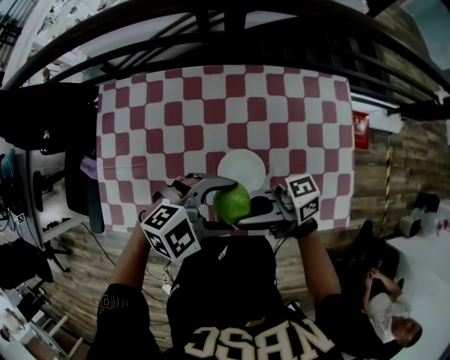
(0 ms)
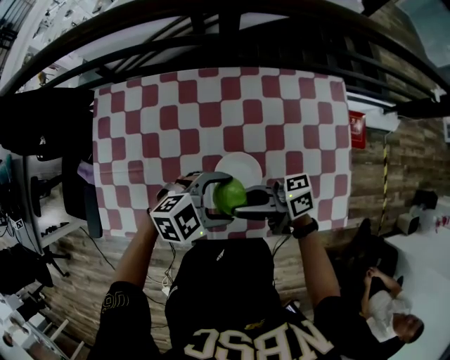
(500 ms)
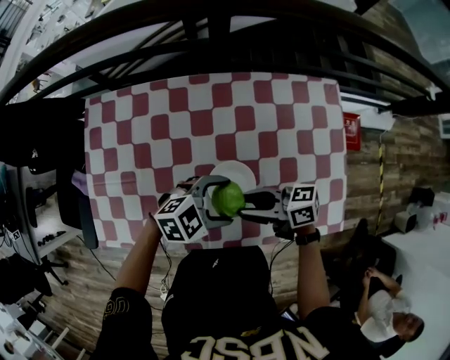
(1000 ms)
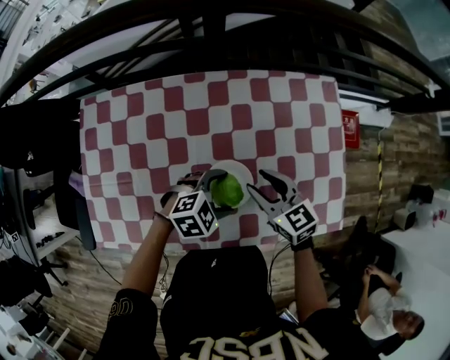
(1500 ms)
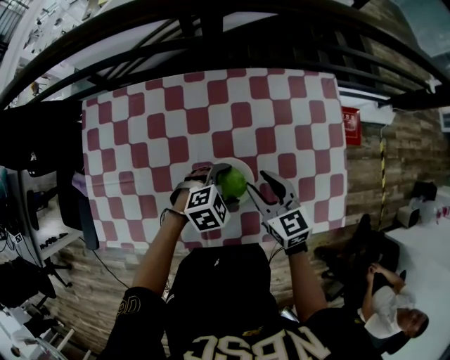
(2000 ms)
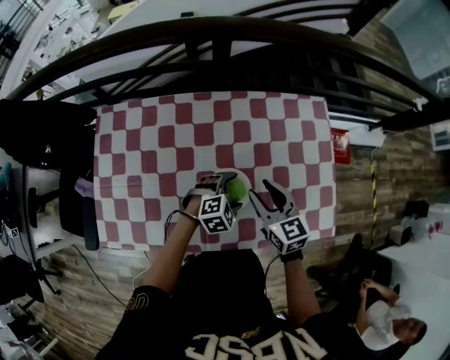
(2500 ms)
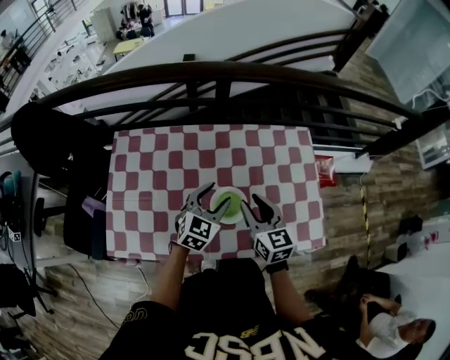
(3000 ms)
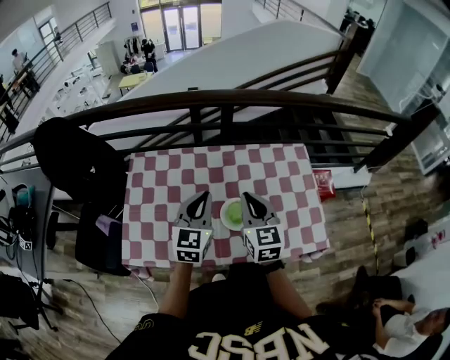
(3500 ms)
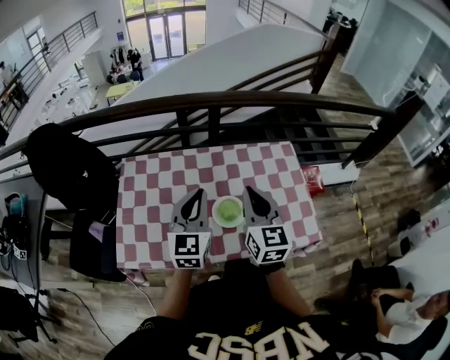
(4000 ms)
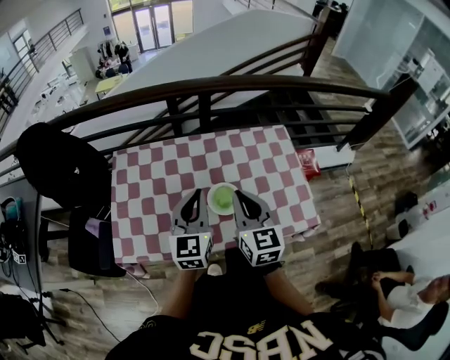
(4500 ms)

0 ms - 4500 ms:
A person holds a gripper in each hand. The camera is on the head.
0 ms - 2000 ms: The right gripper ends up approximately 20 cm from where it was, angles its fingers downward, by approximately 50 degrees, and opens; the left gripper goes approximately 15 cm downward, and turns by approximately 20 degrees.
2000 ms - 4500 ms: The right gripper travels upward and backward by roughly 25 cm, turns by some 30 degrees, and closes its fingers; the left gripper goes about 30 cm upward, angles its fingers upward, by about 50 degrees, and closes.

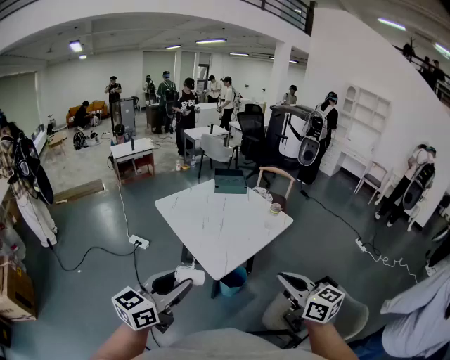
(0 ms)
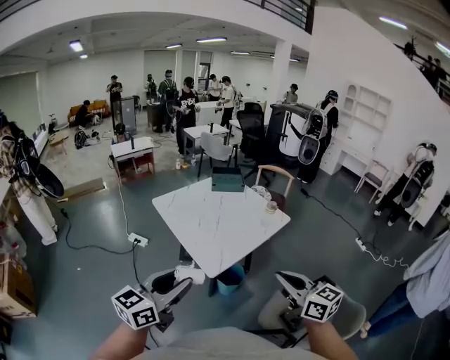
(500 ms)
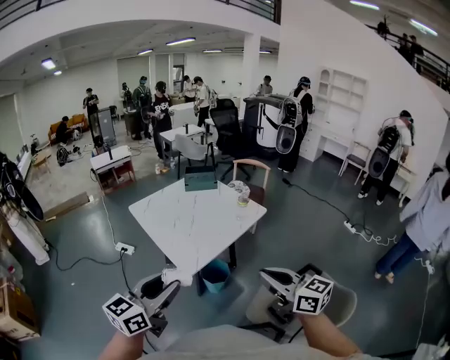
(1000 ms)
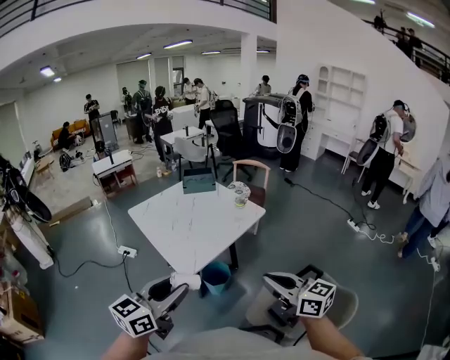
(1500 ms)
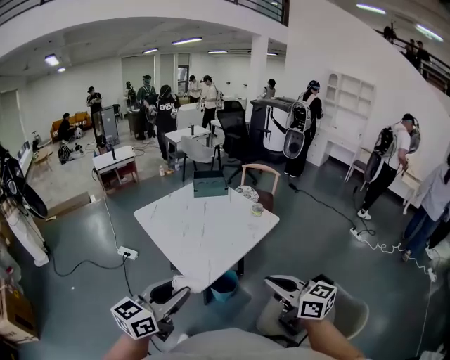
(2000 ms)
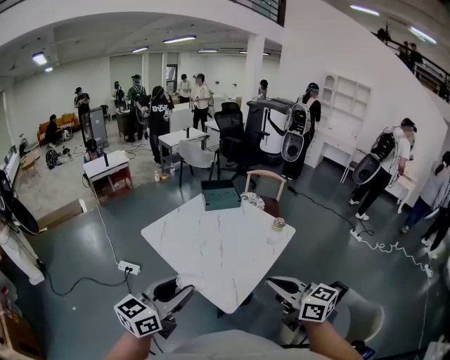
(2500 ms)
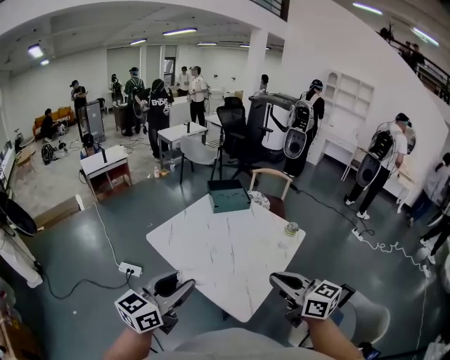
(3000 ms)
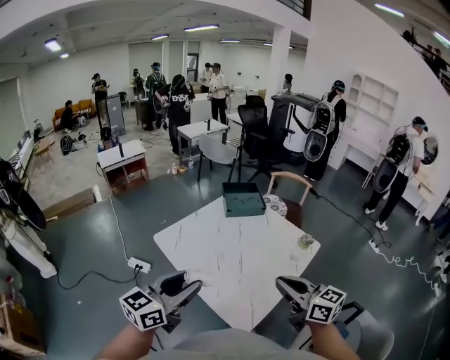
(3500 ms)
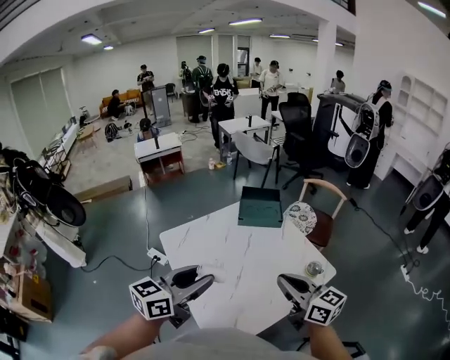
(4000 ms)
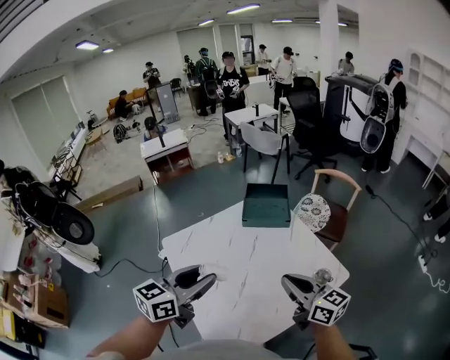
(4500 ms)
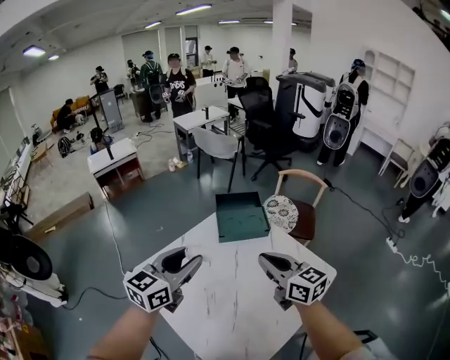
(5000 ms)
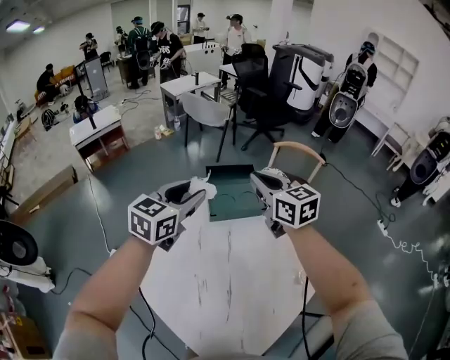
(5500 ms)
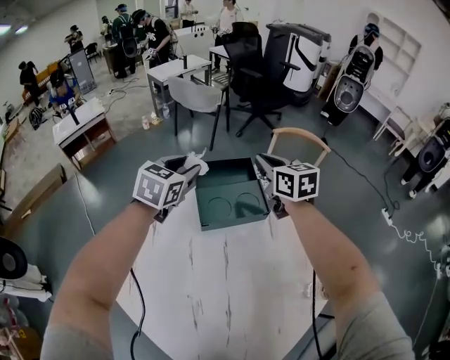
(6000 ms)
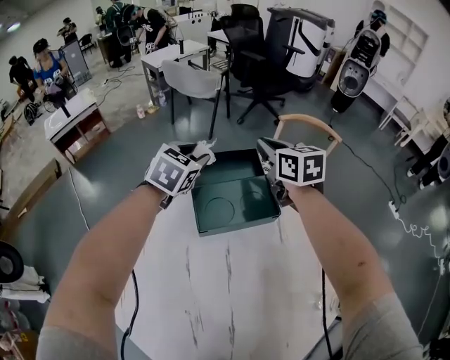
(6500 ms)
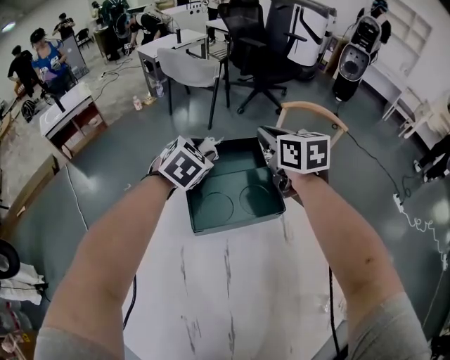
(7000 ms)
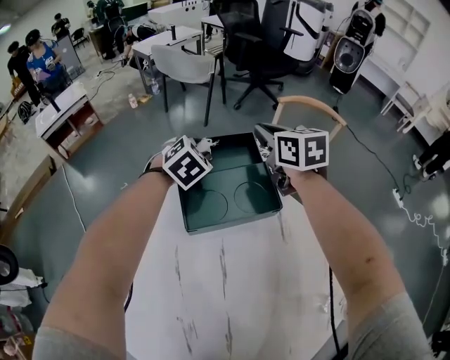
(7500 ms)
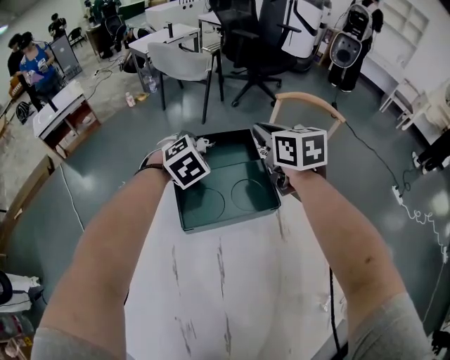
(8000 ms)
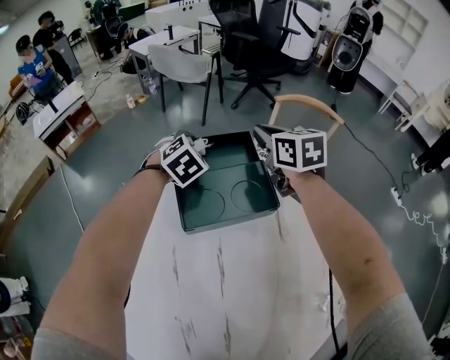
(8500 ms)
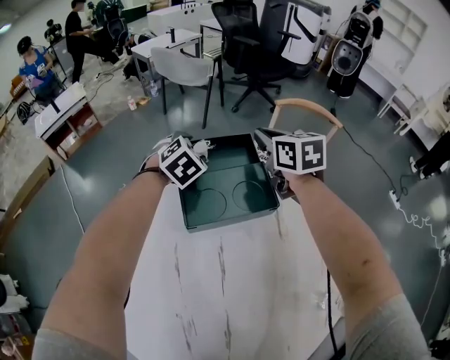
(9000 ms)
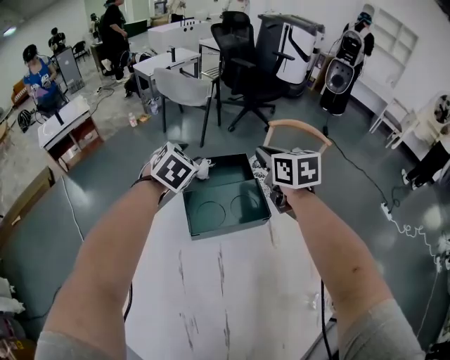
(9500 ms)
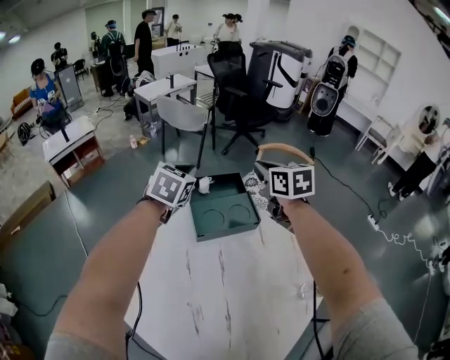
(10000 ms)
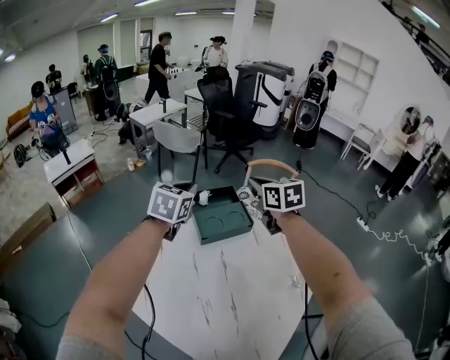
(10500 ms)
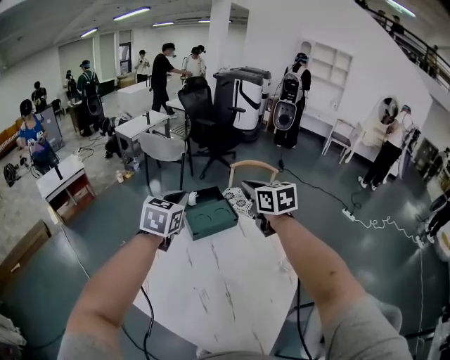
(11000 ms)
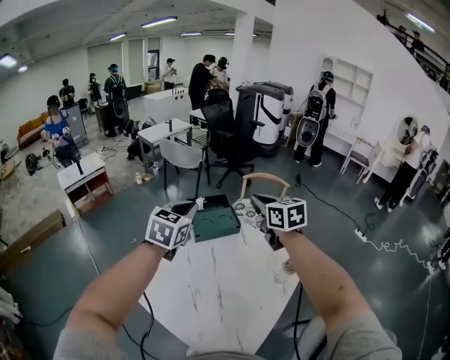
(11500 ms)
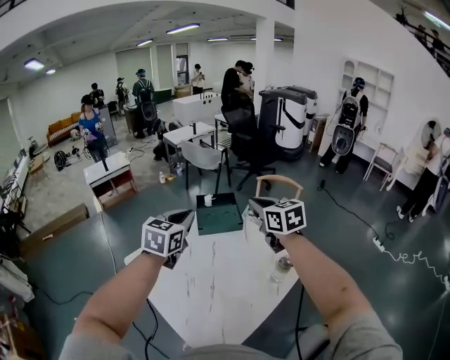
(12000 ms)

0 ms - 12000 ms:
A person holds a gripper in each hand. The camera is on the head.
0 ms - 2000 ms: The left gripper travels to the right and forward by approximately 10 cm.
2000 ms - 4000 ms: Both grippers travel together forward, about 35 cm.
4000 ms - 6000 ms: Both grippers are carried forward, roughly 50 cm. The right gripper turns by roughly 30 degrees. The left gripper swivels approximately 30 degrees.
6000 ms - 8000 ms: The right gripper is displaced downward and forward by roughly 15 cm; the left gripper moves downward and forward, approximately 20 cm, and rotates approximately 40 degrees.
8000 ms - 10000 ms: The left gripper is displaced upward by some 20 cm, rotates approximately 40 degrees, and closes up. The right gripper heads upward and backward, covering about 20 cm.
10000 ms - 12000 ms: Both grippers move backward and upward, about 35 cm.

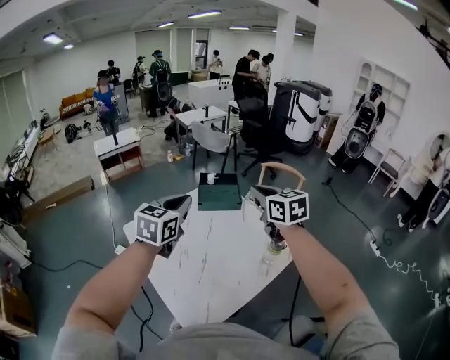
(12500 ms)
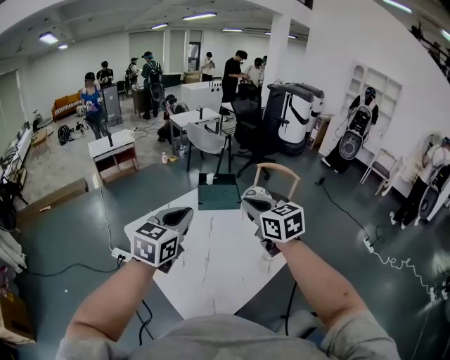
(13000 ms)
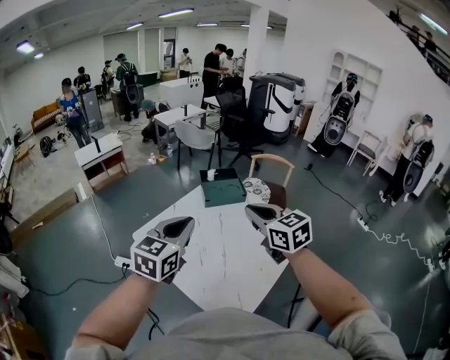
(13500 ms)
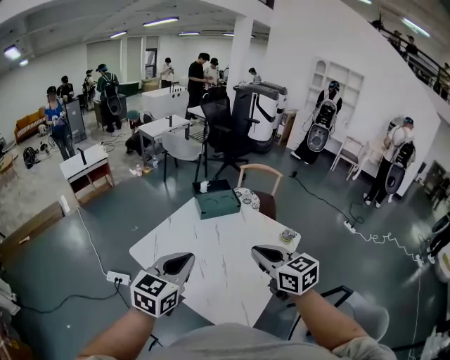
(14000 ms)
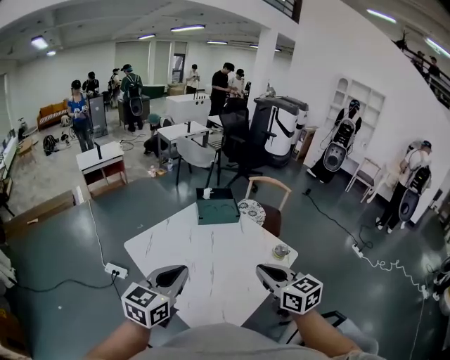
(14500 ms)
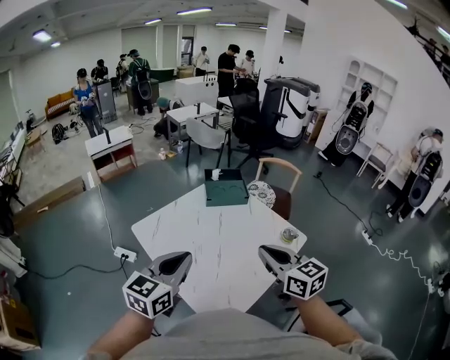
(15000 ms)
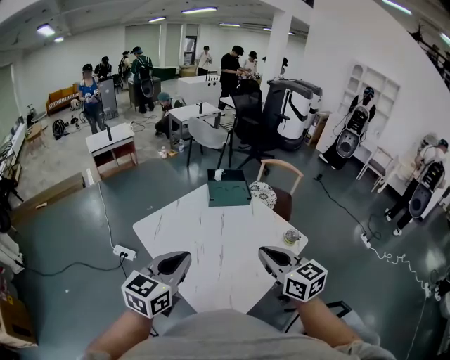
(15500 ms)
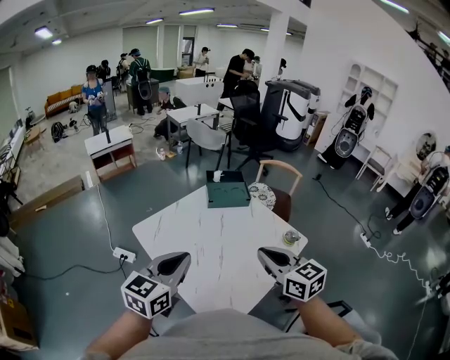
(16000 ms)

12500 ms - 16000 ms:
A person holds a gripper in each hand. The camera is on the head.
12500 ms - 14500 ms: The left gripper shifts roughly 20 cm backward and to the left, while the right gripper moves backward, roughly 20 cm.
14500 ms - 16000 ms: There are only small adjustments of the grippers.

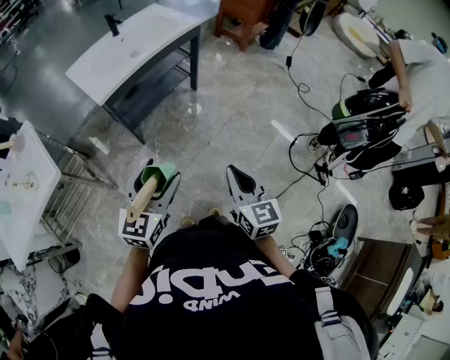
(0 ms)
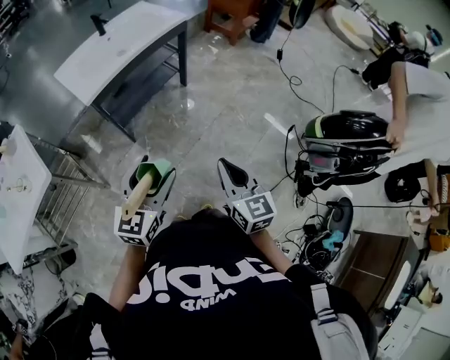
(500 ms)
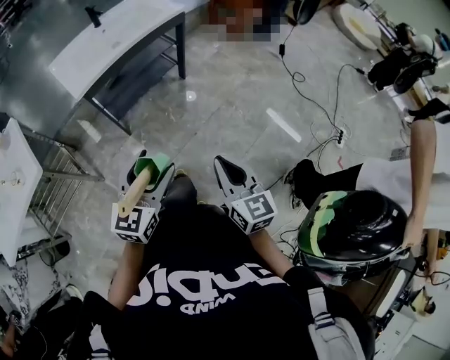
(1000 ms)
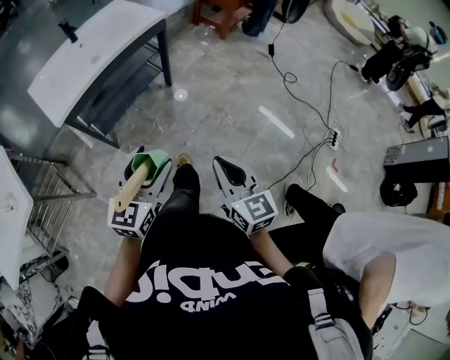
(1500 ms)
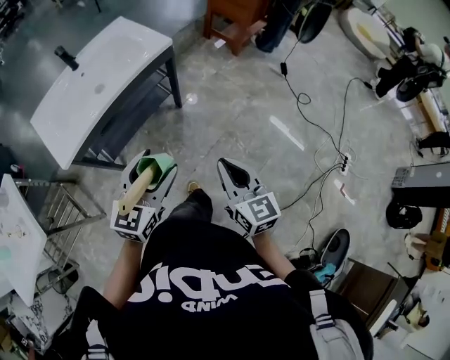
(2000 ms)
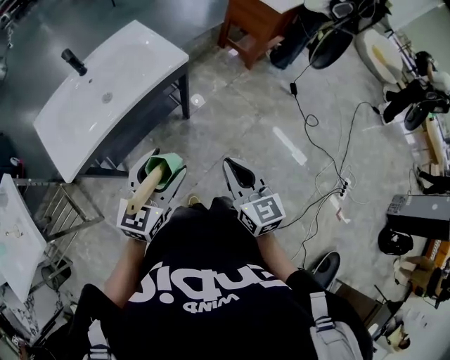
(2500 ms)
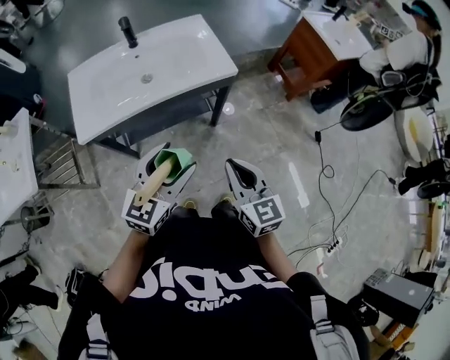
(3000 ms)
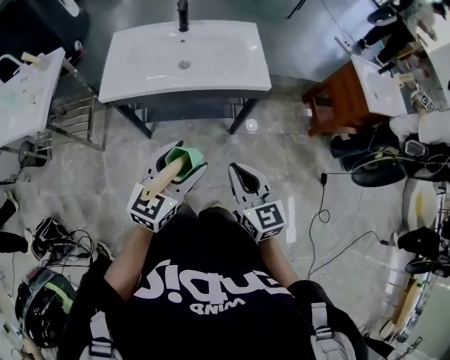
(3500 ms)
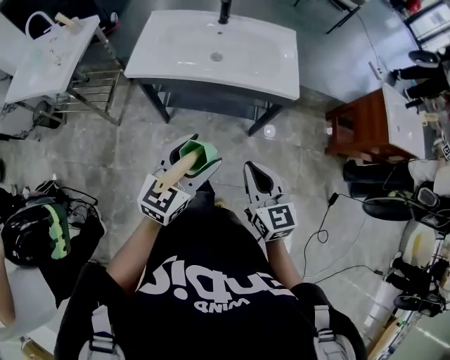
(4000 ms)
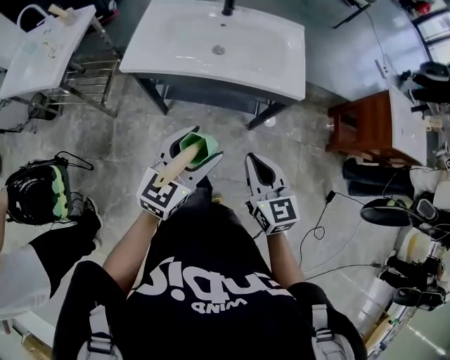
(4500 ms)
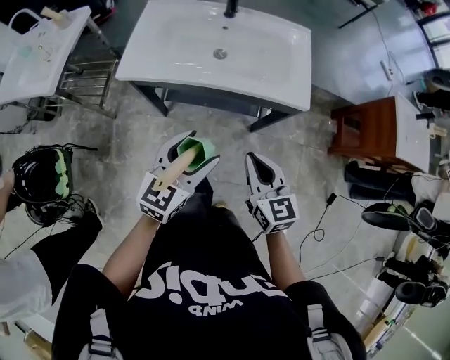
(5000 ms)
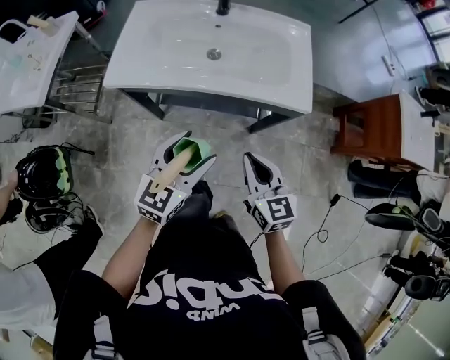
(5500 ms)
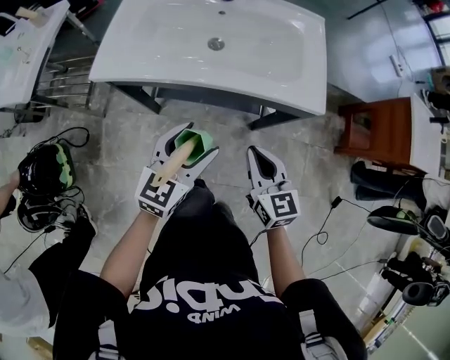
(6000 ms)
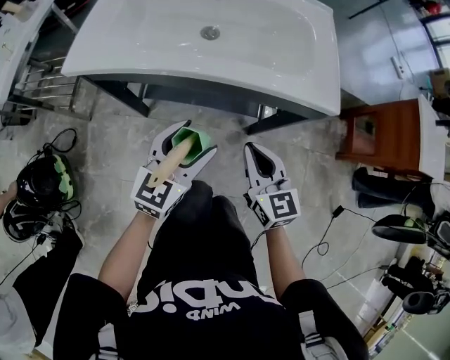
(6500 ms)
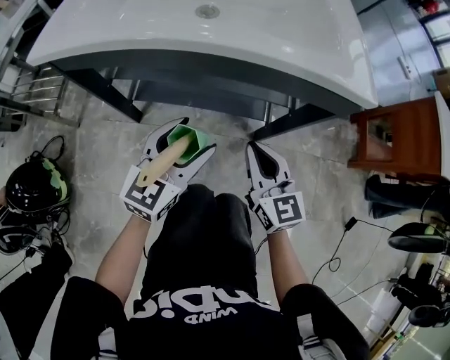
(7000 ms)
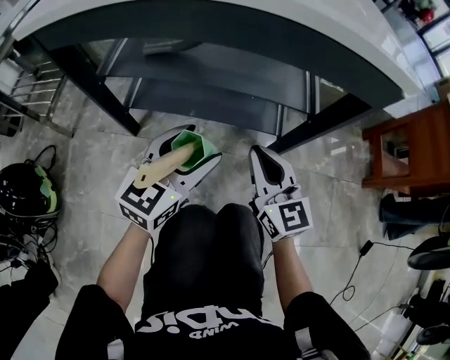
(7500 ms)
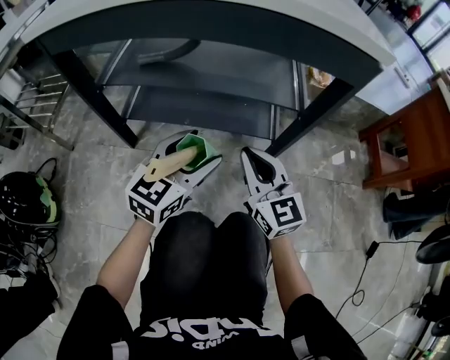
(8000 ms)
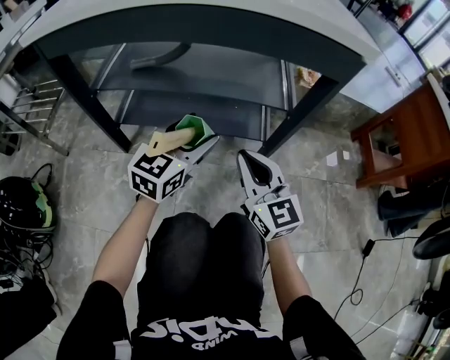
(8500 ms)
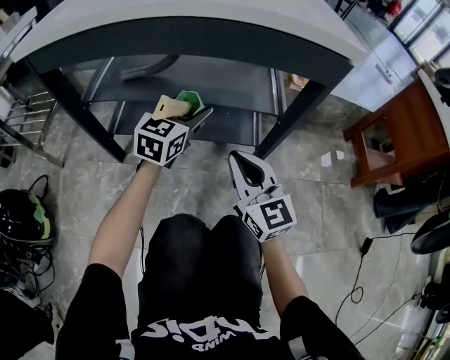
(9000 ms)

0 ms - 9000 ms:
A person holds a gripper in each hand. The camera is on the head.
0 ms - 2000 ms: The two grippers go roughly 35 cm forward.
2000 ms - 4500 ms: The left gripper changes place by approximately 15 cm, and swivels some 40 degrees, while the right gripper shifts by roughly 25 cm, and changes its angle by roughly 50 degrees.
4500 ms - 7000 ms: The two grippers go roughly 40 cm downward and forward.
7000 ms - 9000 ms: The left gripper moves forward and downward, approximately 15 cm; the right gripper is displaced downward by about 10 cm.
